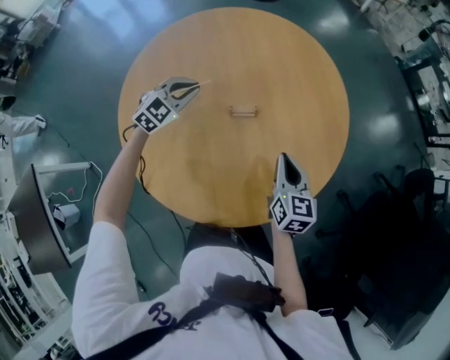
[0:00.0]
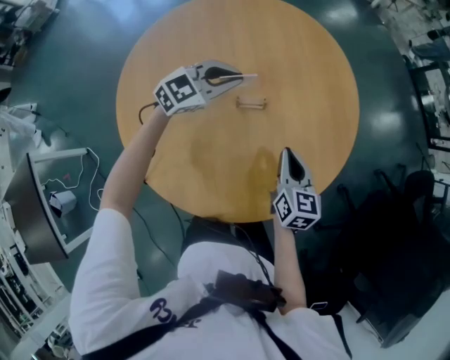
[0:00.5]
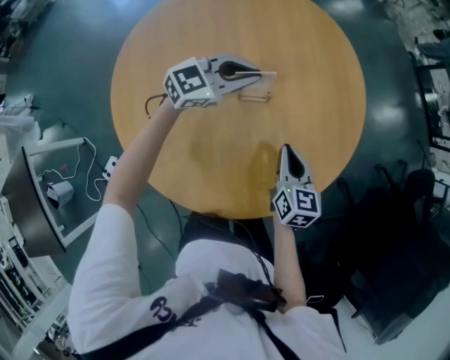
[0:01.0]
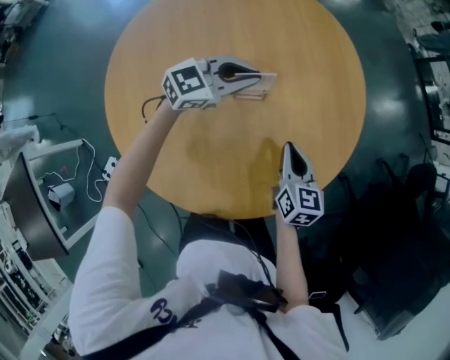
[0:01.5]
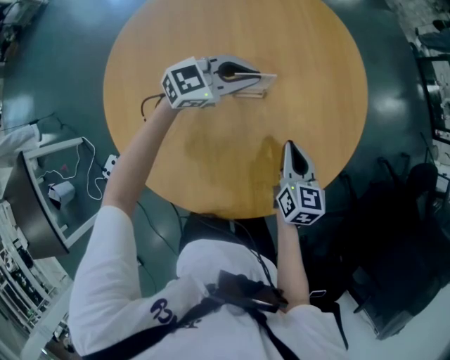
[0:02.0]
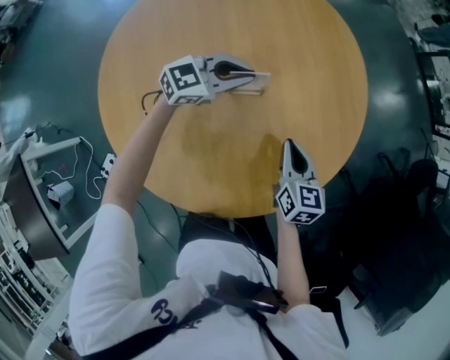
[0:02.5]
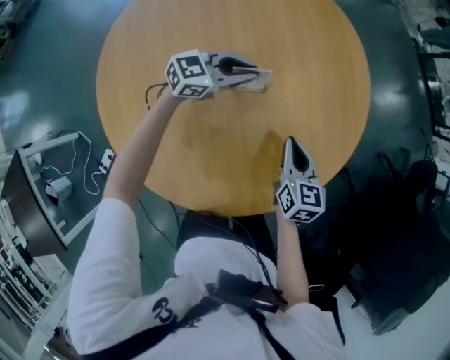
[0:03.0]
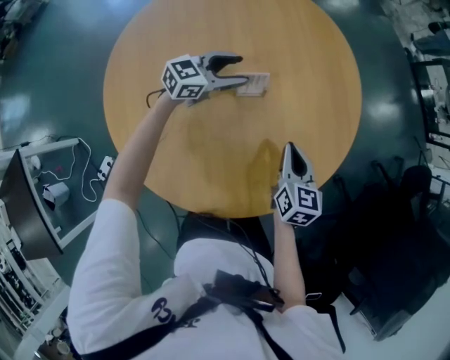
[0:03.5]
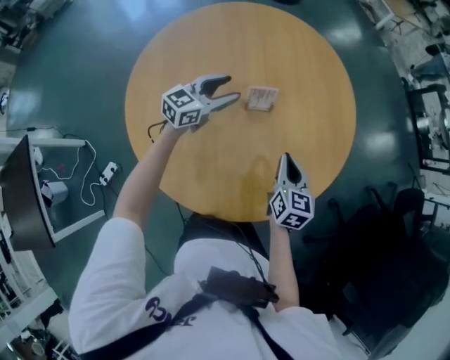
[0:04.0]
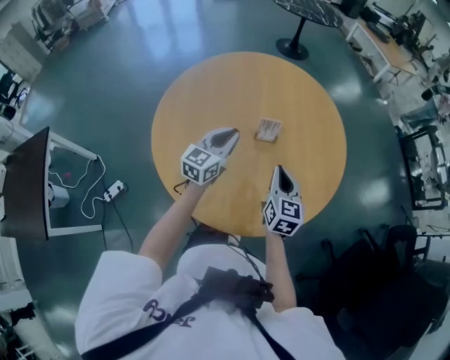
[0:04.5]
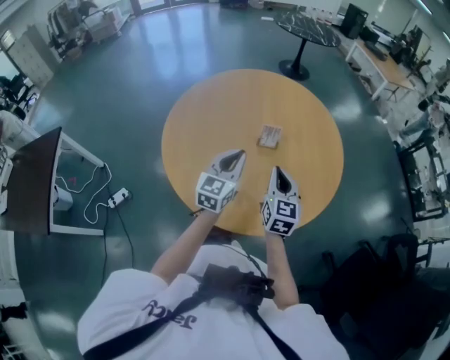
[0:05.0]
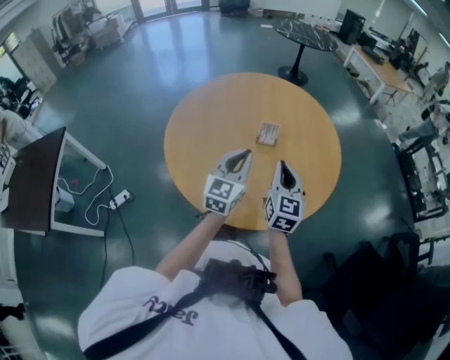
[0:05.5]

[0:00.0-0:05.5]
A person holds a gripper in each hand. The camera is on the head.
0:00.0 to 0:02.0: The left gripper moves to the right, roughly 15 cm, and swivels roughly 40 degrees.
0:02.0 to 0:03.5: The left gripper shifts some 5 cm downward, and opens its fingers.
0:03.5 to 0:05.5: The right gripper moves upward, some 15 cm, and rotates some 30 degrees; the left gripper ends up some 30 cm from where it was, swivels about 60 degrees, and closes up.

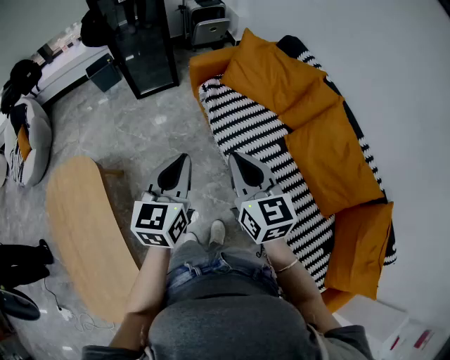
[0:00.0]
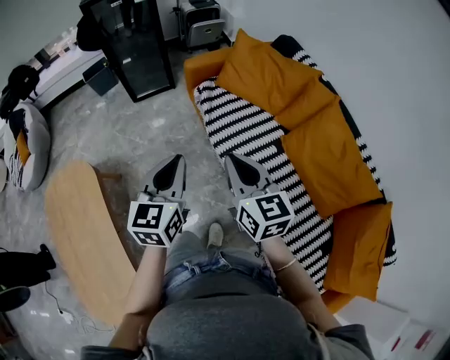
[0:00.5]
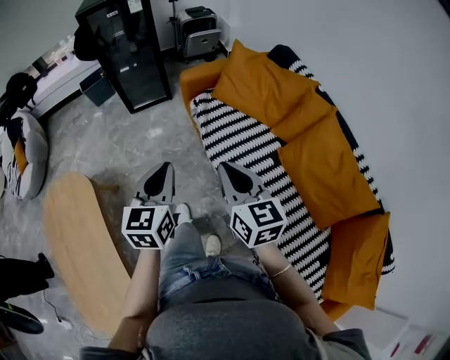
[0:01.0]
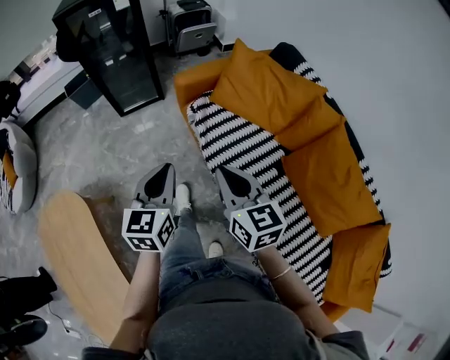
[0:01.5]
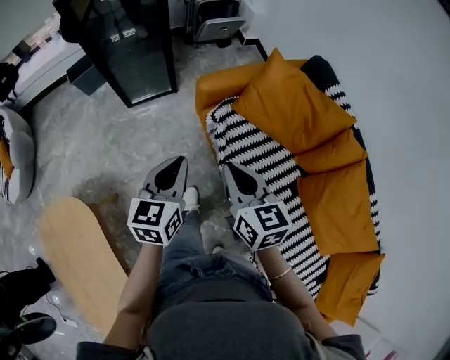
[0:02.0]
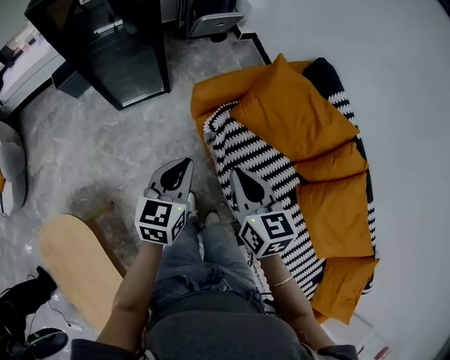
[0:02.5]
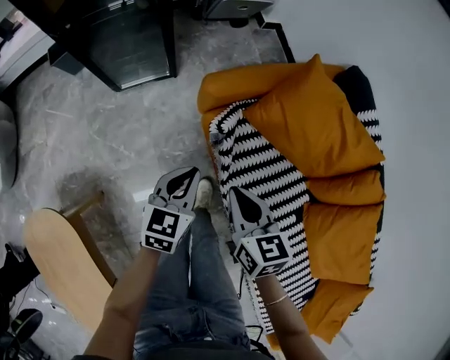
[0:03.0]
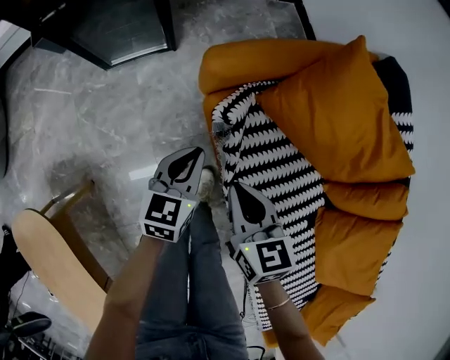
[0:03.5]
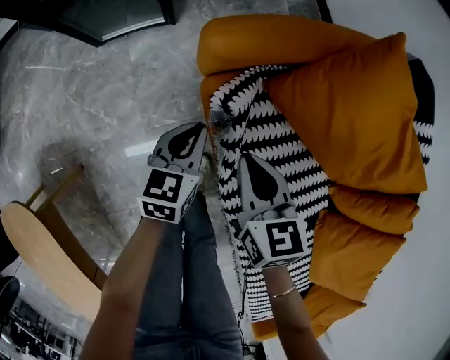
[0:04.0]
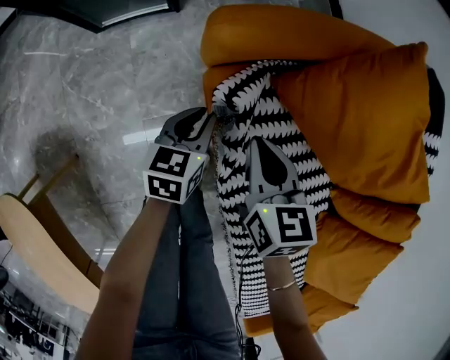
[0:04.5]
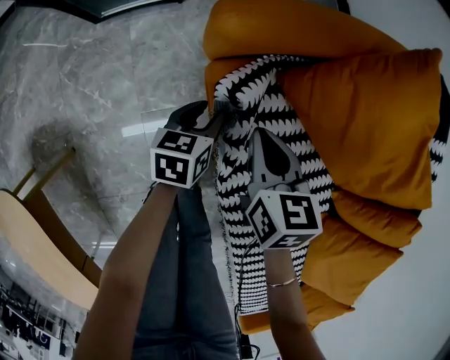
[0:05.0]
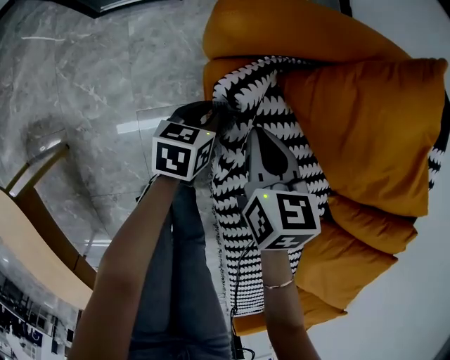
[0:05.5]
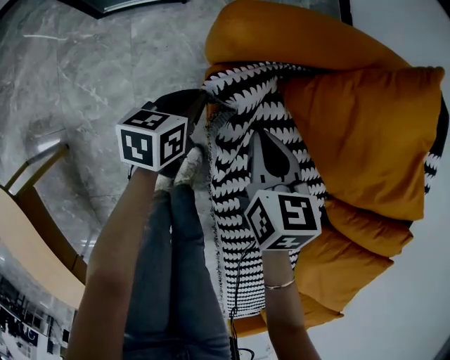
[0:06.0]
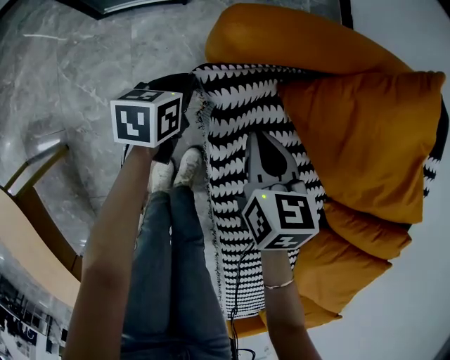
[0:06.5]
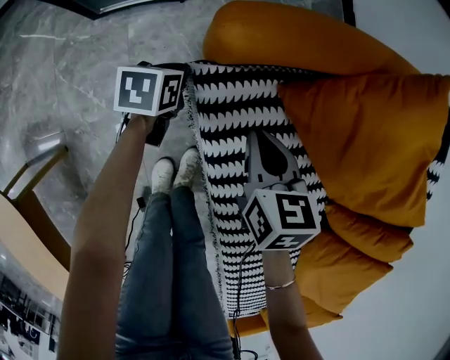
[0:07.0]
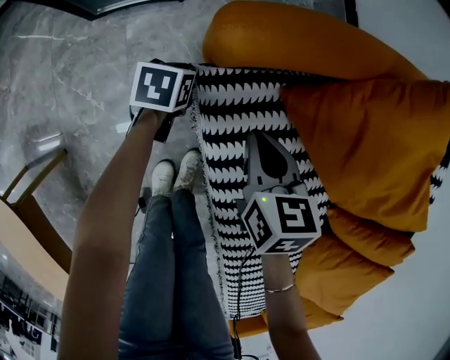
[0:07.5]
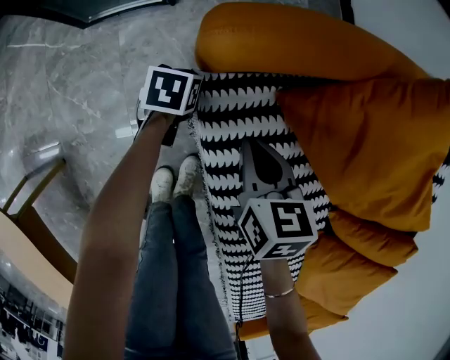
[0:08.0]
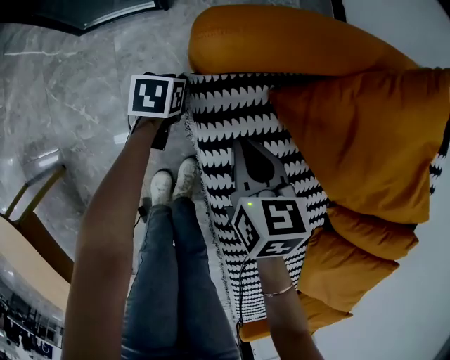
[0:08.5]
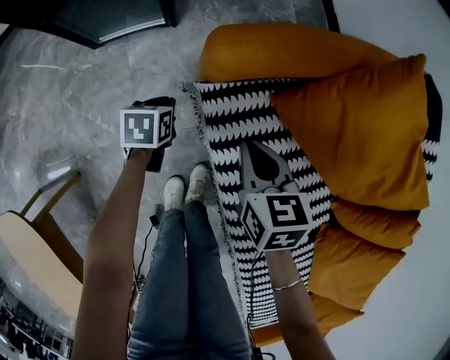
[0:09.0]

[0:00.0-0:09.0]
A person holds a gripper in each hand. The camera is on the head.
0:00.0 to 0:02.0: Both grippers travel together forward, roughly 30 cm.
0:02.0 to 0:04.5: Both grippers move downward and forward, about 40 cm. The left gripper rotates about 20 degrees.
0:04.5 to 0:07.0: The right gripper shifts about 5 cm downward; the left gripper shifts some 15 cm downward, forward and to the left, and opens and closes again.
0:07.0 to 0:09.0: The left gripper ends up some 5 cm from where it was.

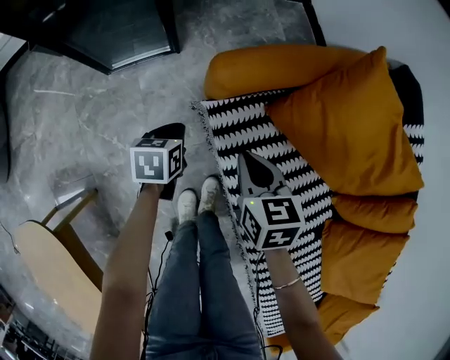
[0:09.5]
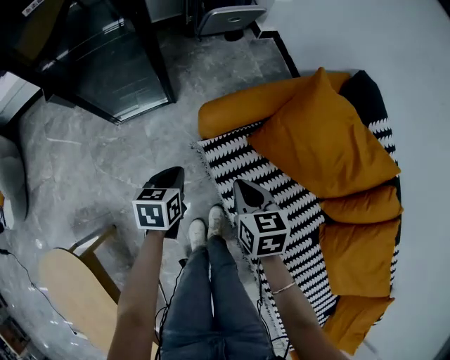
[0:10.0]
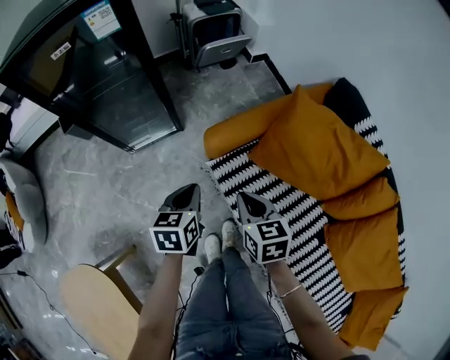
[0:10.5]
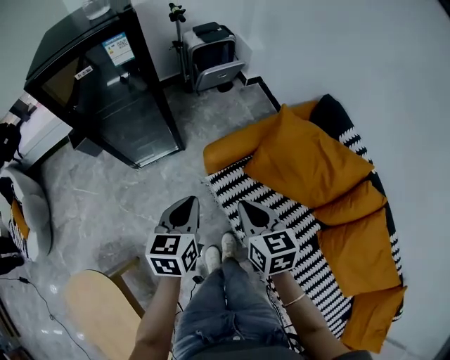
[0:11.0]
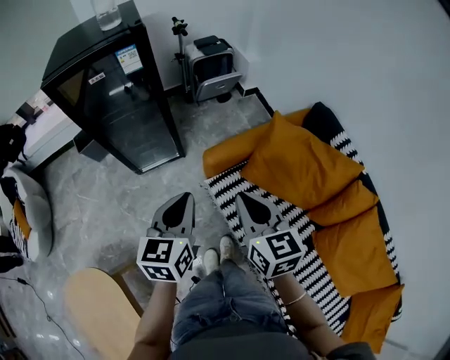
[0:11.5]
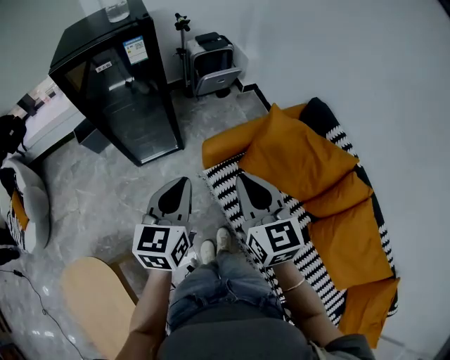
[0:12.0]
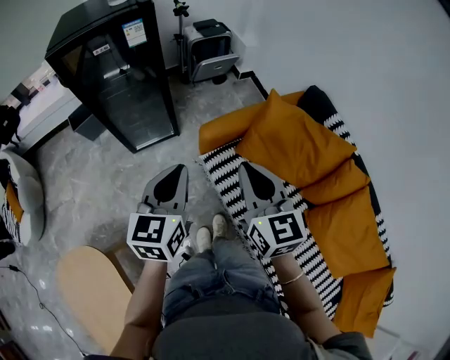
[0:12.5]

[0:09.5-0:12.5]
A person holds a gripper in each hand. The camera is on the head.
0:09.5 to 0:11.0: The two grippers go approximately 30 cm upward. The left gripper swivels some 30 degrees.
0:11.0 to 0:12.5: The right gripper goes roughly 15 cm upward, and changes its angle by approximately 20 degrees. The left gripper shifts about 15 cm upward and backward.

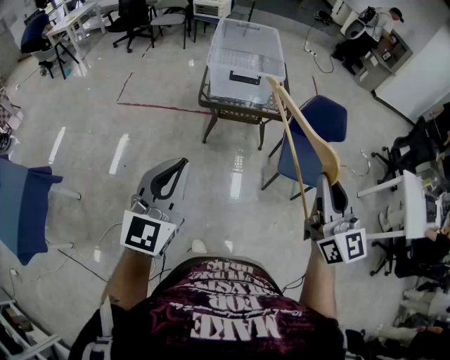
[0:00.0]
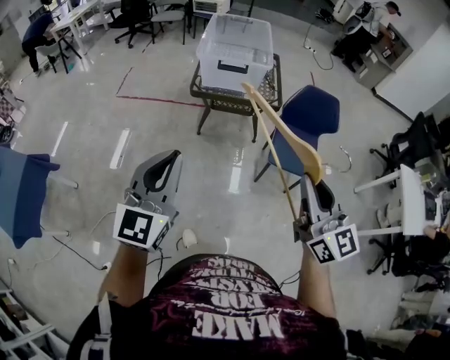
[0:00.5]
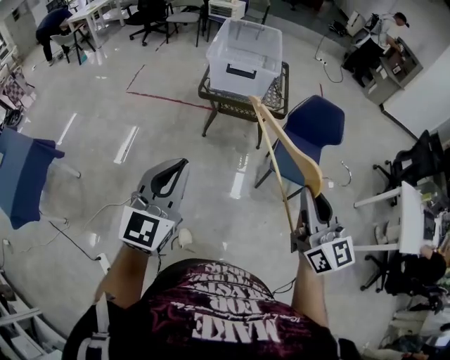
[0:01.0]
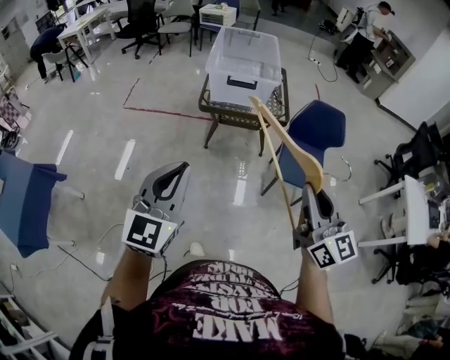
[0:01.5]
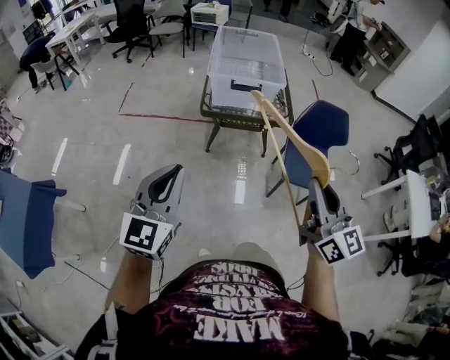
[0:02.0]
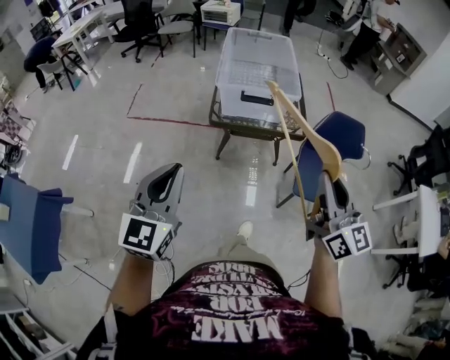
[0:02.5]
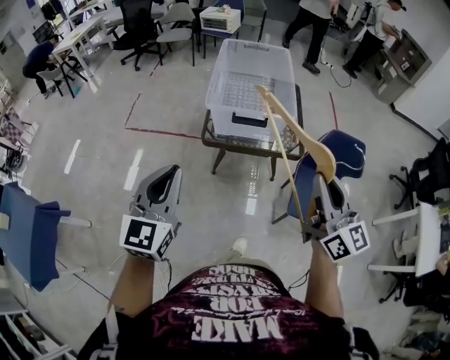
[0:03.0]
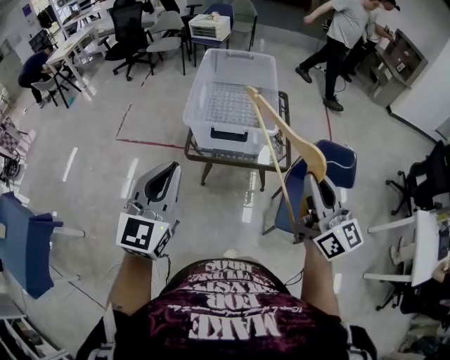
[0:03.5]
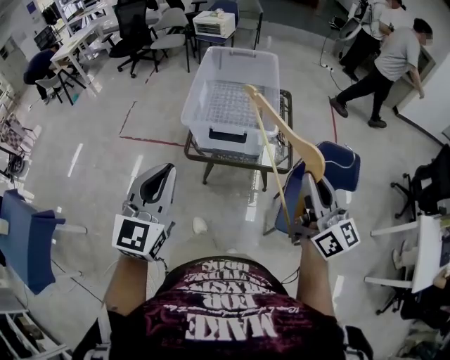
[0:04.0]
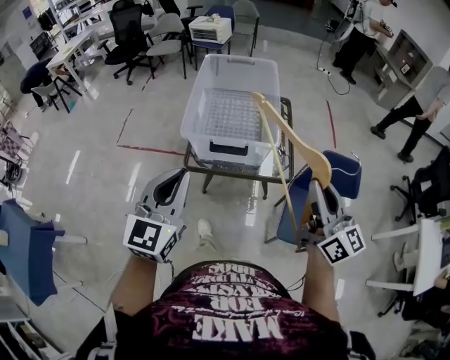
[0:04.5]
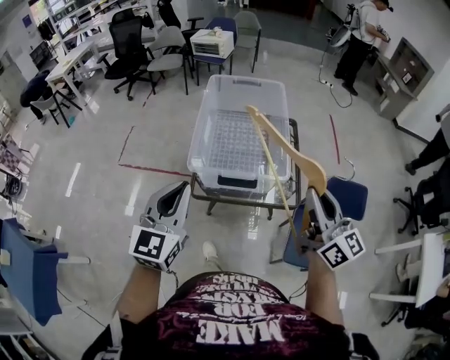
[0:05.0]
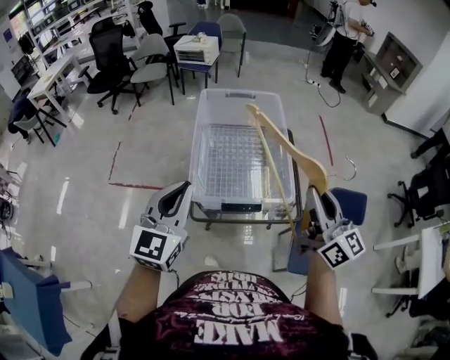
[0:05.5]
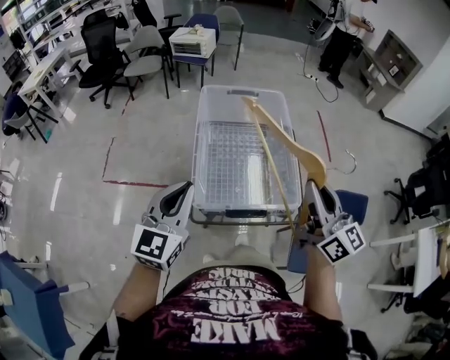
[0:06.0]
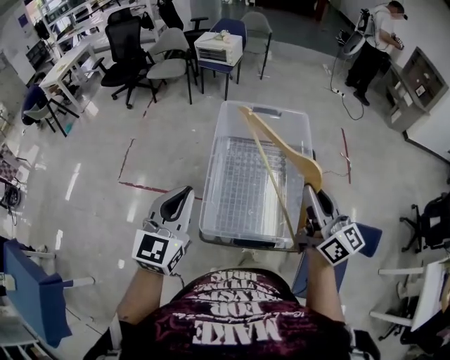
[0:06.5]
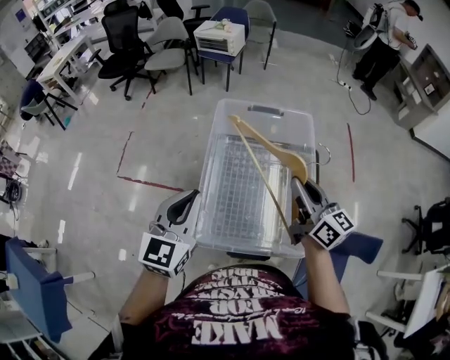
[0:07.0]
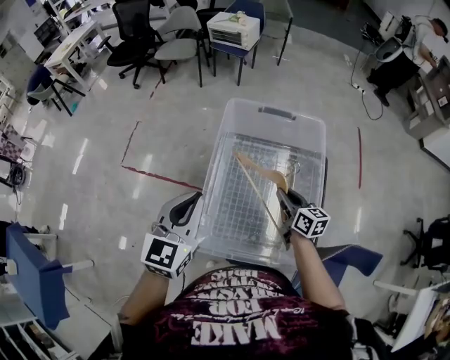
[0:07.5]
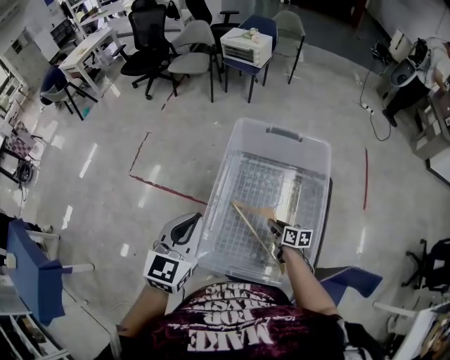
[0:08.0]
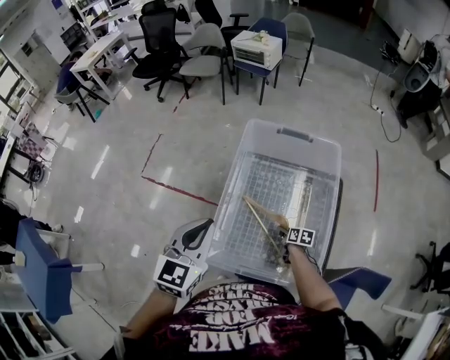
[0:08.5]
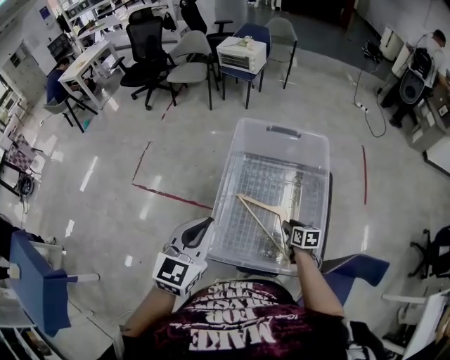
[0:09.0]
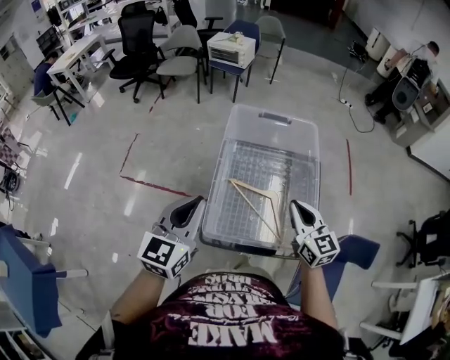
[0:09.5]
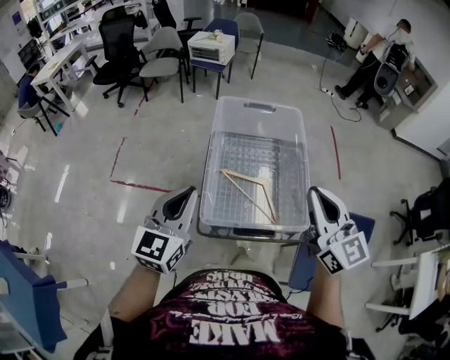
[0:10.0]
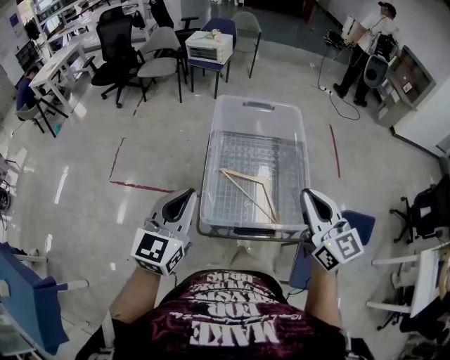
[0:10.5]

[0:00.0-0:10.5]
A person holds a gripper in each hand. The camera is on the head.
0:00.0 to 0:02.0: The left gripper moves roughly 10 cm to the right and comes back; the right gripper travels backward and back again, roughly 10 cm each way.
0:02.0 to 0:04.0: The grippers both shift forward and to the right by some 35 cm.
0:04.0 to 0:06.5: Both grippers travel together forward, about 40 cm.
0:06.5 to 0:08.5: The right gripper is displaced downward by roughly 50 cm, and tips its fingers downward by roughly 60 degrees. The left gripper travels downward and forward by some 10 cm.
0:08.5 to 0:10.5: The left gripper shifts approximately 10 cm backward and to the left, while the right gripper travels upward by about 50 cm, tips its fingers upward by about 50 degrees, and closes.
